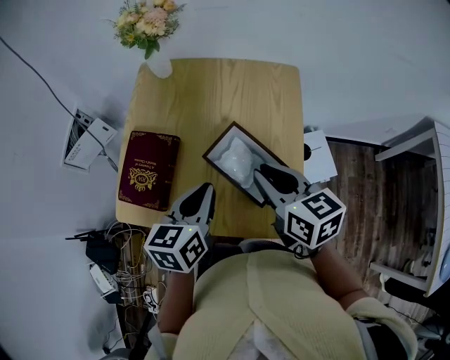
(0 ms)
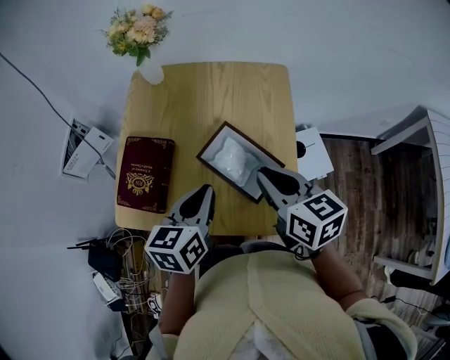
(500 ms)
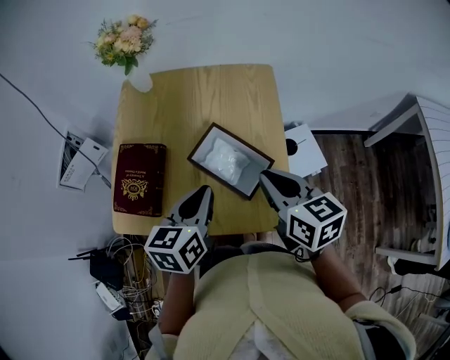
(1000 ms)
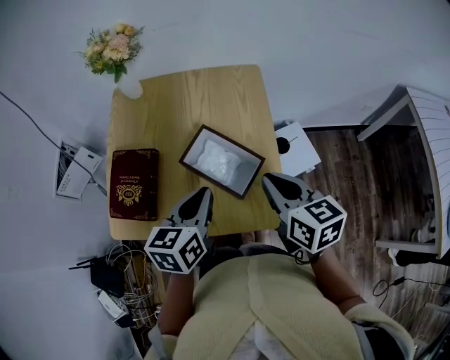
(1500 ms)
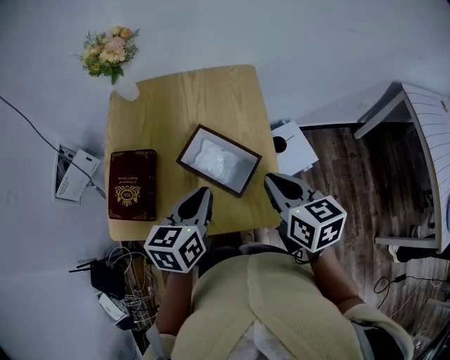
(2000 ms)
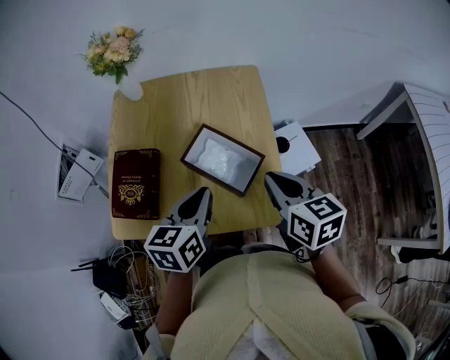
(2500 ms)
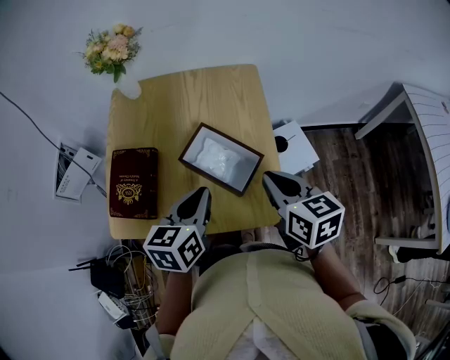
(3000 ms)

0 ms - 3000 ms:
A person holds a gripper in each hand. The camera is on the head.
0 ms - 1500 ms: The right gripper shifts about 10 cm to the right and backward.
1500 ms - 3000 ms: Both grippers stay put.

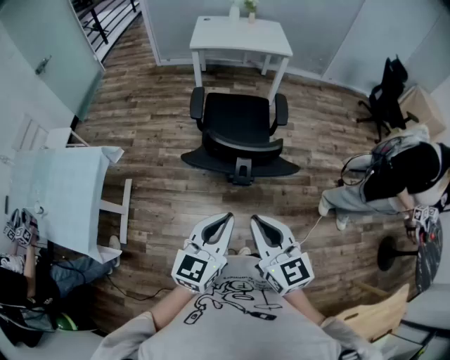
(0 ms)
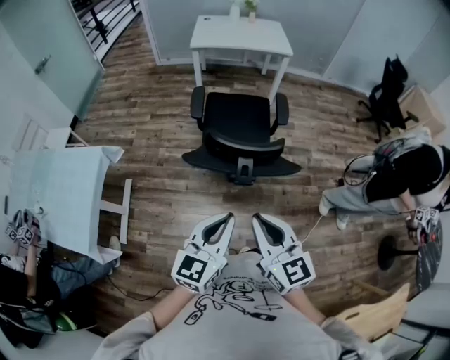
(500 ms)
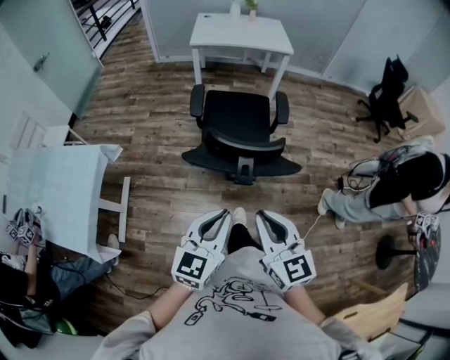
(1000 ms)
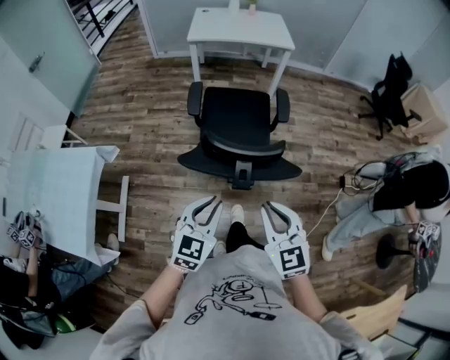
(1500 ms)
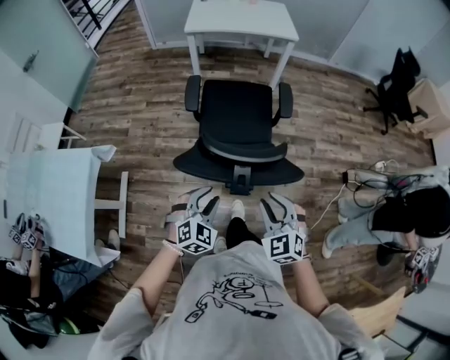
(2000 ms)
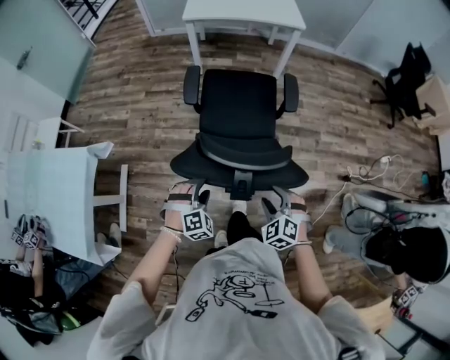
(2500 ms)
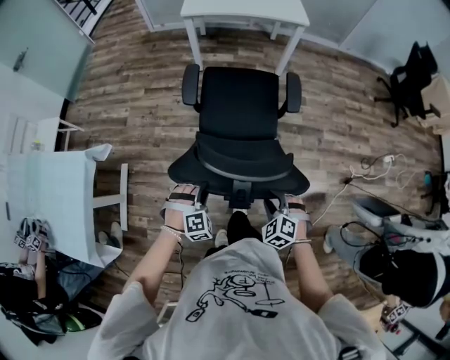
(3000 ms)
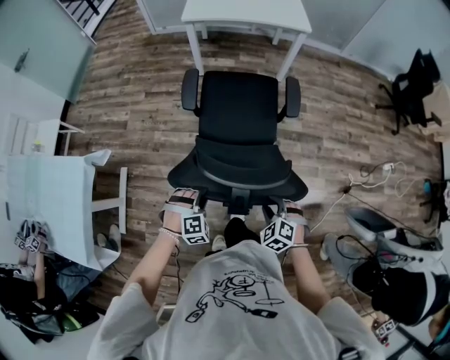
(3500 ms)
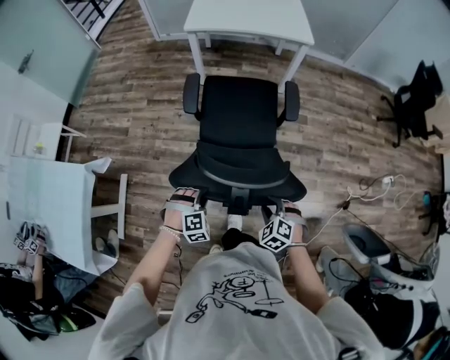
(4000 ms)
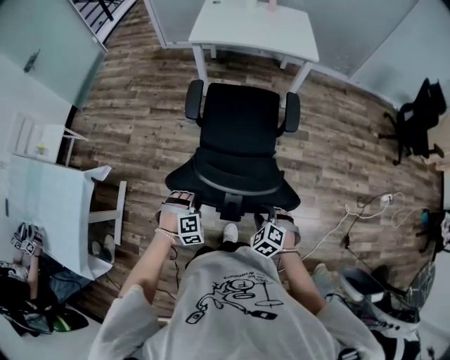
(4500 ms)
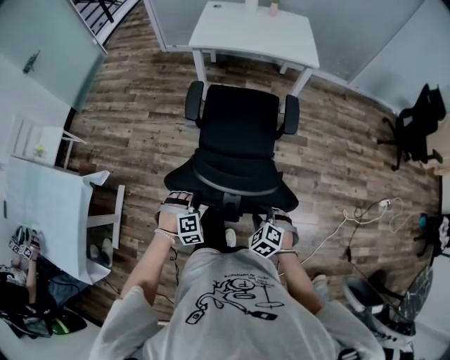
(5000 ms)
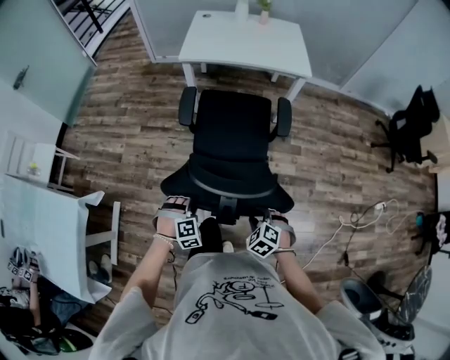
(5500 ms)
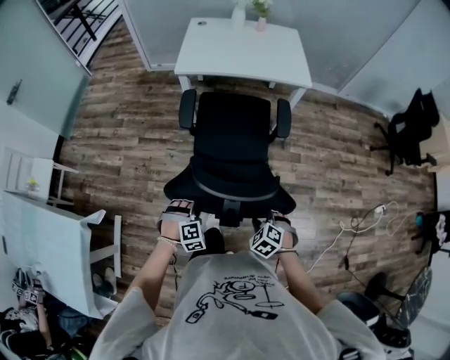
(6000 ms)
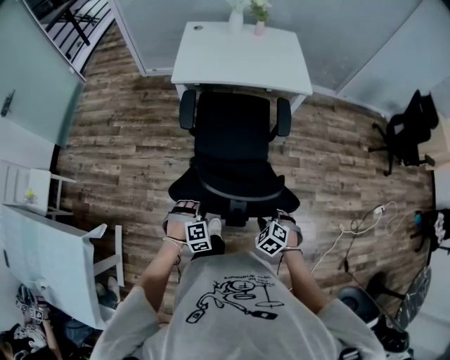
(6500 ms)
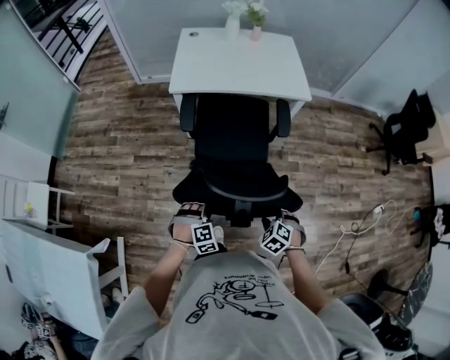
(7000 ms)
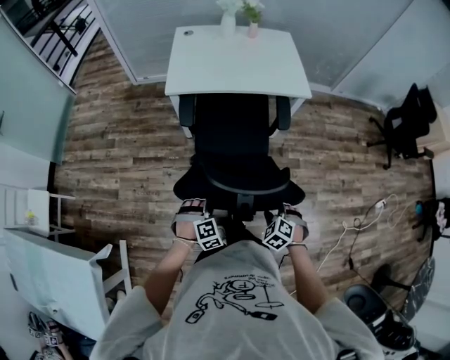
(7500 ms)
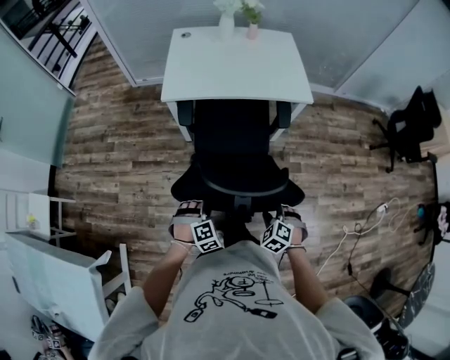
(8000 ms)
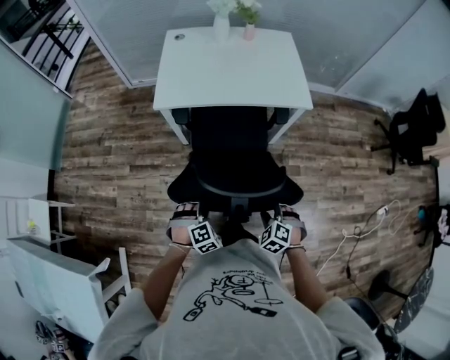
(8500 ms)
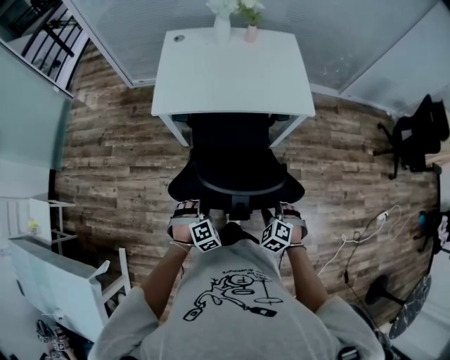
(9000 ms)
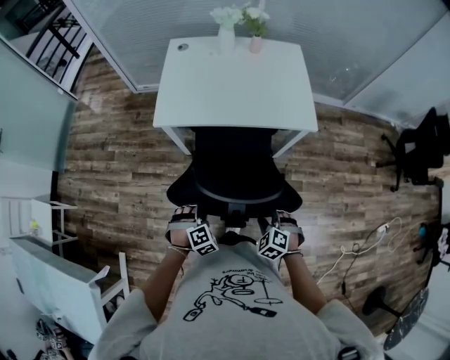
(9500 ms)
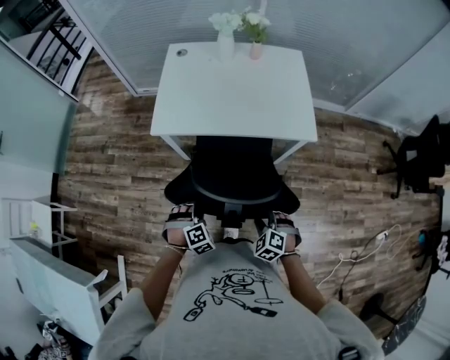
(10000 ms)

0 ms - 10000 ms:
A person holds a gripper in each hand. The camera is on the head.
0 ms - 2000 ms: The right gripper heads downward, forward and to the right, covering some 20 cm, and rotates roughly 40 degrees, while the left gripper goes approximately 25 cm downward and forward, rolls clockwise, seen from behind, by approximately 40 degrees, and opens.
2000 ms - 4000 ms: The left gripper shifts some 20 cm forward and downward, and swivels approximately 30 degrees. Meanwhile the right gripper goes about 20 cm downward, forward and to the right, and turns by some 30 degrees.
4000 ms - 6000 ms: Both grippers travel together forward, some 20 cm.
6000 ms - 8000 ms: The two grippers go some 20 cm forward.
8000 ms - 10000 ms: Both grippers move forward, roughly 20 cm.

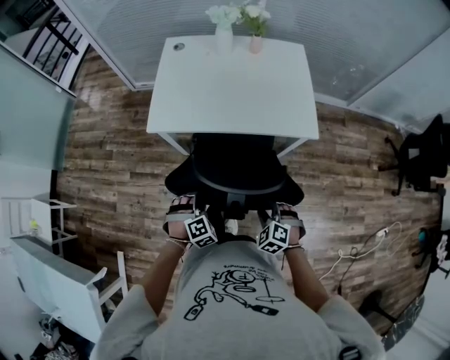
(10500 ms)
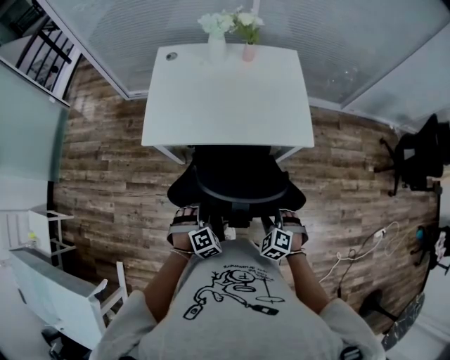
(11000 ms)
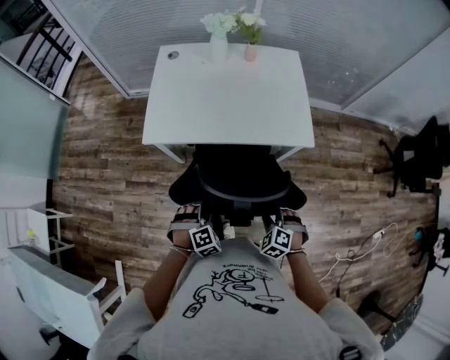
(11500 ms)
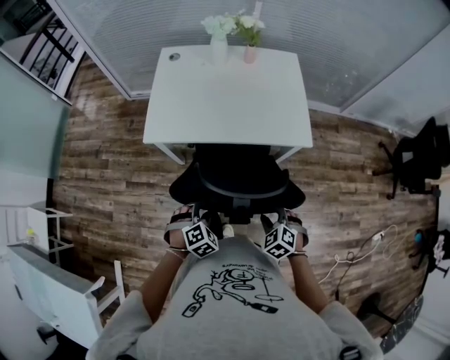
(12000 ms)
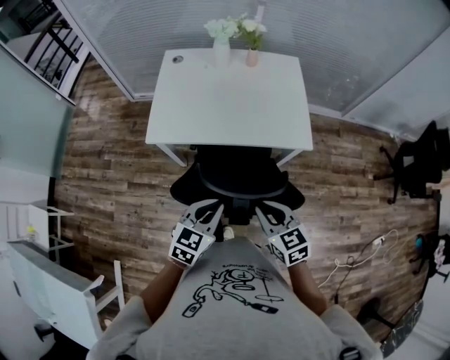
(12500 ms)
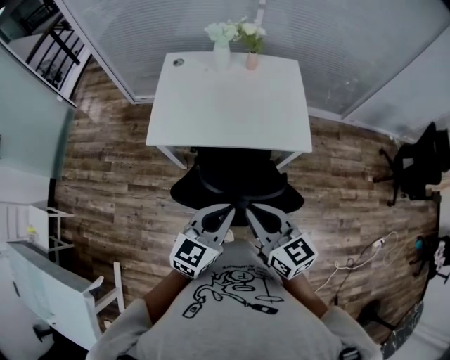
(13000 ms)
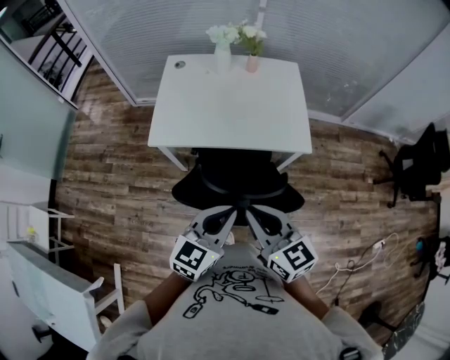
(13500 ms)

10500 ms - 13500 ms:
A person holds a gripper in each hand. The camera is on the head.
10500 ms - 12000 ms: The grippers stay close to where they were, moving slightly.
12000 ms - 13500 ms: Both grippers move upward, some 25 cm. The right gripper angles its fingers upward, by approximately 50 degrees, and closes. The left gripper points its fingers some 50 degrees further upward, and closes up.

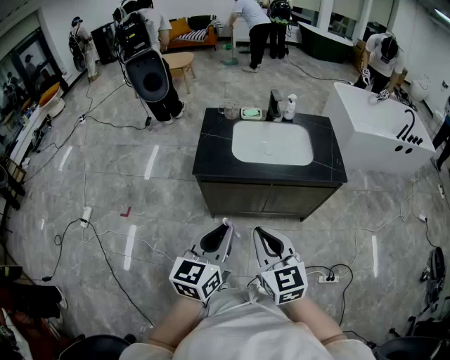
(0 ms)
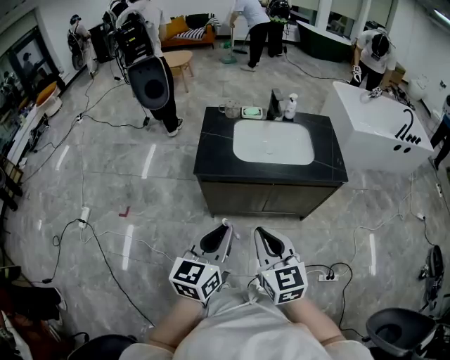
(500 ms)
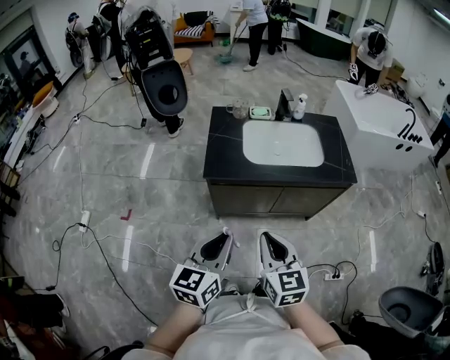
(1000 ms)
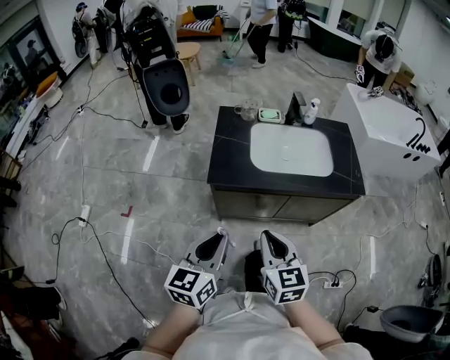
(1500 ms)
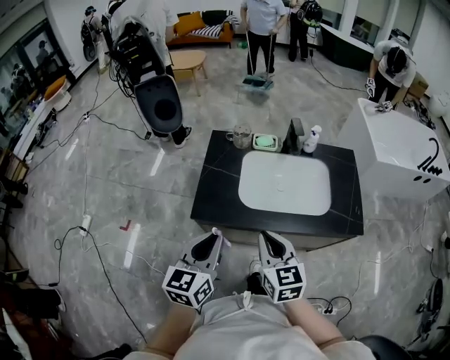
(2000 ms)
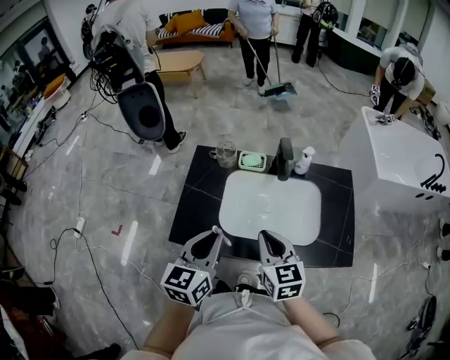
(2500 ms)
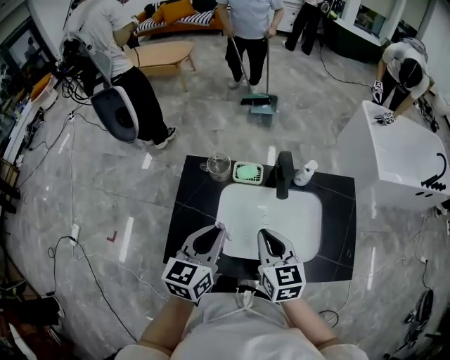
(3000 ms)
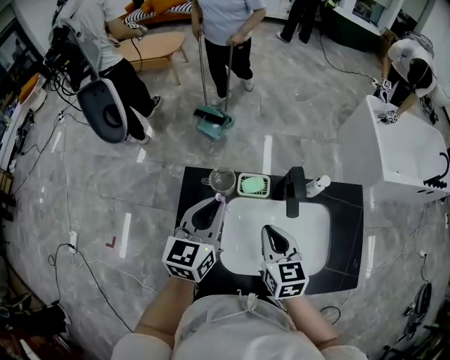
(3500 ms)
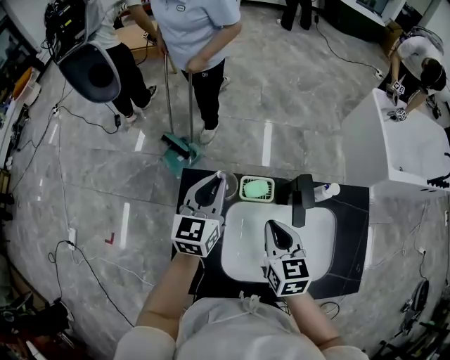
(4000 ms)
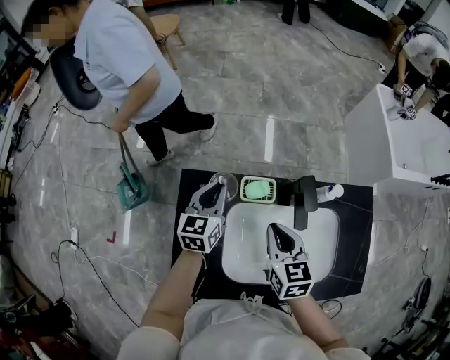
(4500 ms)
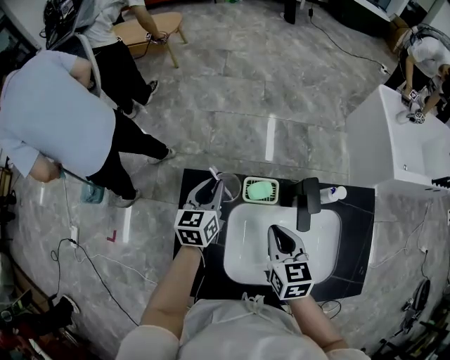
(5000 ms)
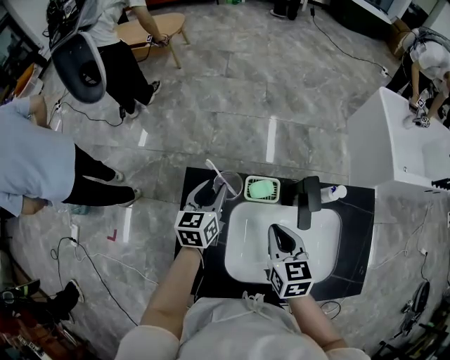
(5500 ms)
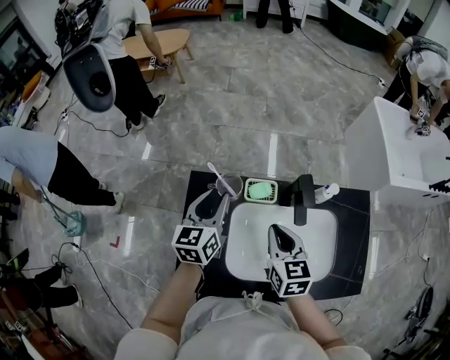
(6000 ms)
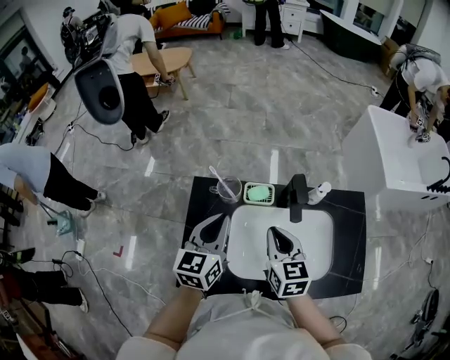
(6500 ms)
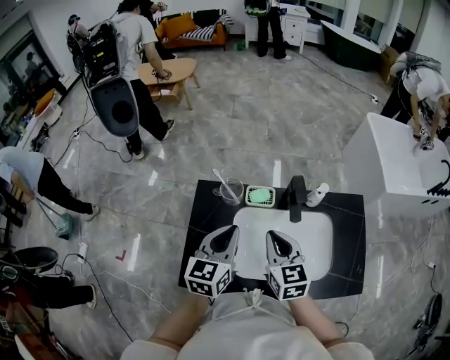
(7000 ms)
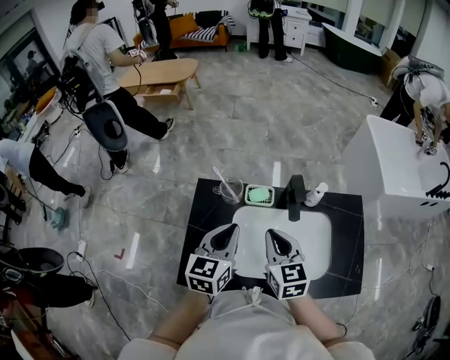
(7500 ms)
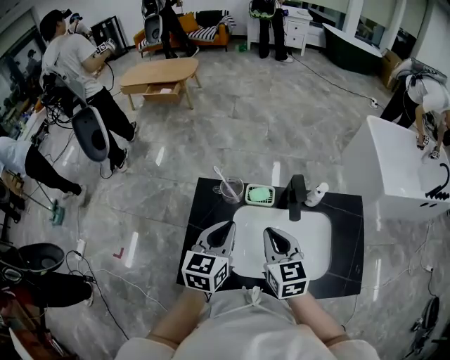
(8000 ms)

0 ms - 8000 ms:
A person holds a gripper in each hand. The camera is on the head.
0 ms - 2000 ms: The grippers both shift forward by roughly 20 cm.
2000 ms - 4000 ms: Both grippers travel together forward, approximately 40 cm.
4000 ms - 6000 ms: The left gripper moves approximately 10 cm downward and comes back, and opens up.
6000 ms - 8000 ms: The right gripper shifts approximately 5 cm upward. The left gripper is displaced backward by roughly 10 cm, and closes up.

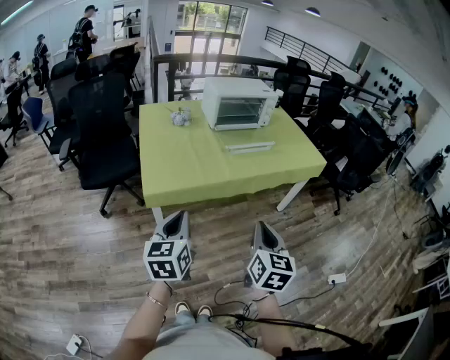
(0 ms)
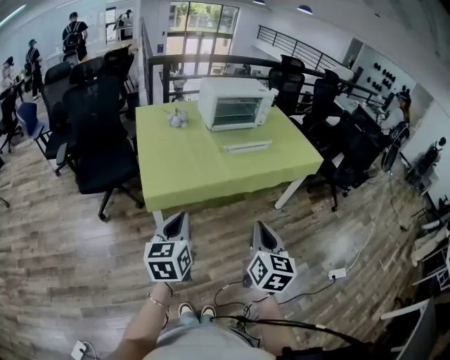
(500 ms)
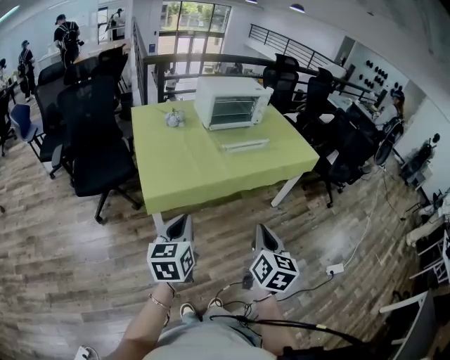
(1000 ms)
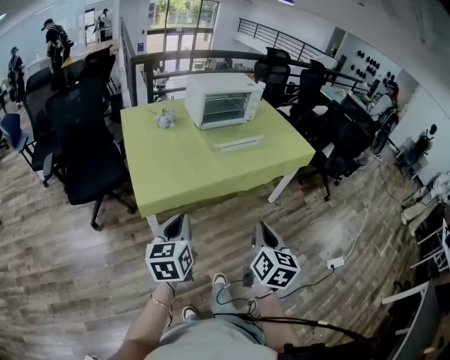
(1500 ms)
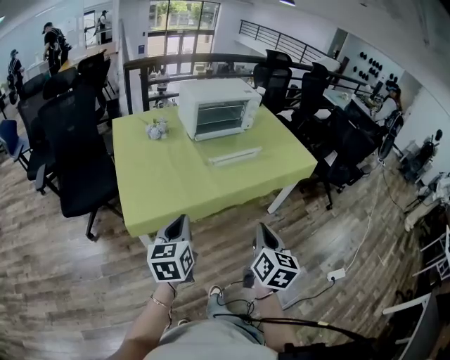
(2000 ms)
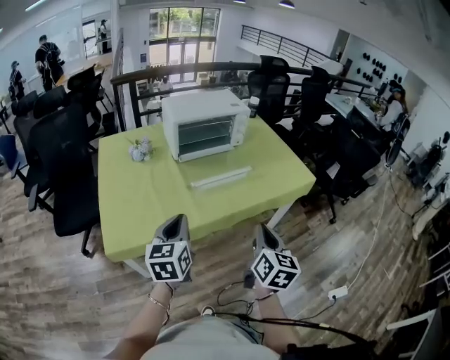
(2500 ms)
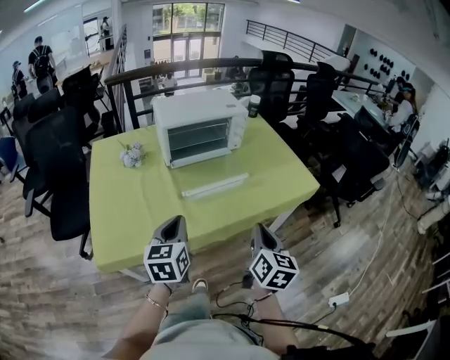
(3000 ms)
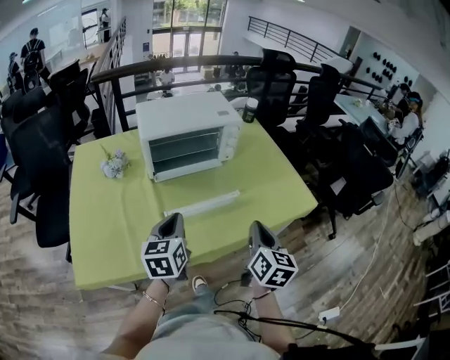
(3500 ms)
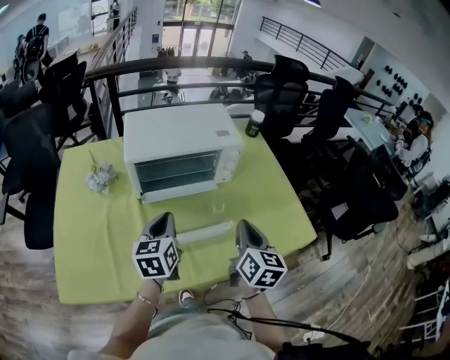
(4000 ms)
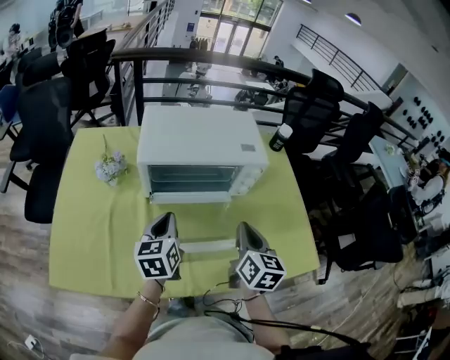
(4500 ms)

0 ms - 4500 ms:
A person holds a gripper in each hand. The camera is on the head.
0 ms - 2000 ms: The grippers both shift forward by roughly 15 cm.
2000 ms - 4500 ms: The two grippers travel together, forward, some 60 cm. The left gripper rotates roughly 20 degrees. Meanwhile the right gripper changes its angle by about 20 degrees.
